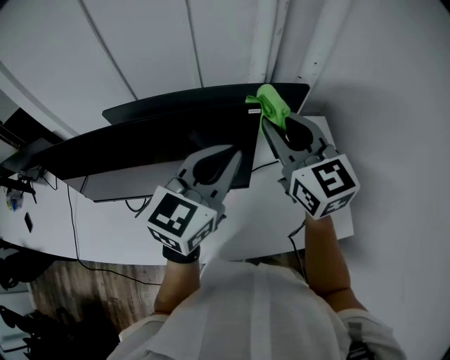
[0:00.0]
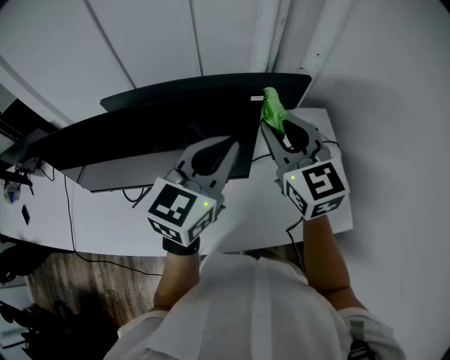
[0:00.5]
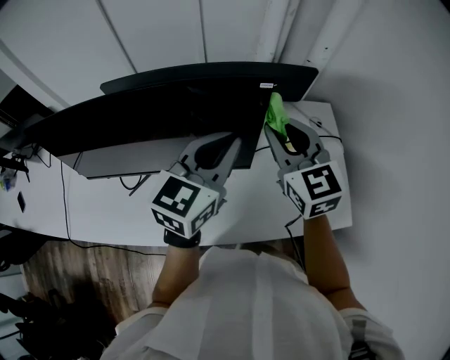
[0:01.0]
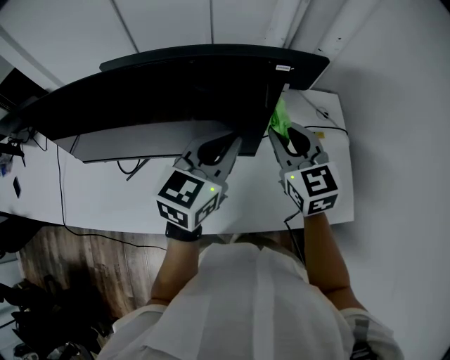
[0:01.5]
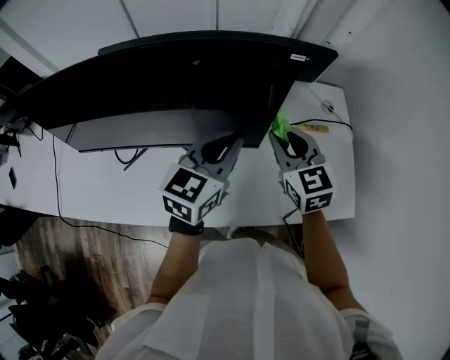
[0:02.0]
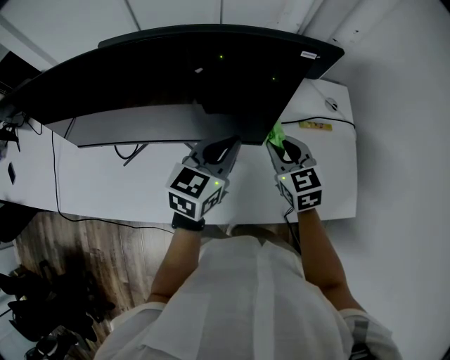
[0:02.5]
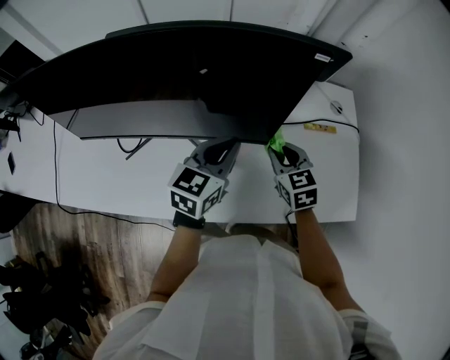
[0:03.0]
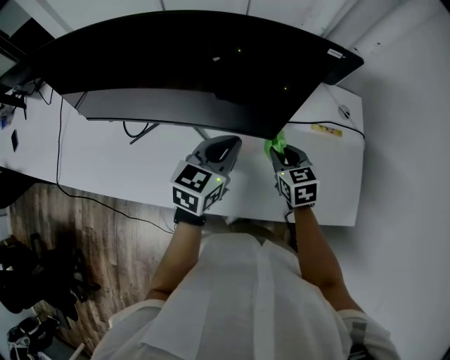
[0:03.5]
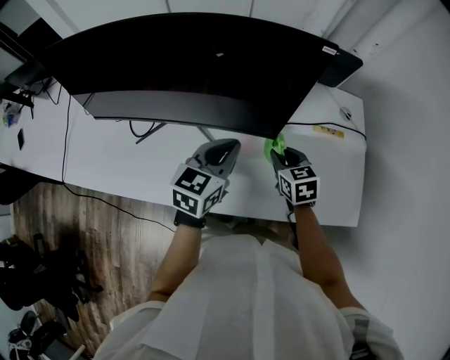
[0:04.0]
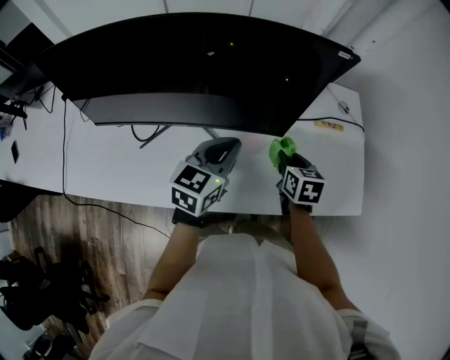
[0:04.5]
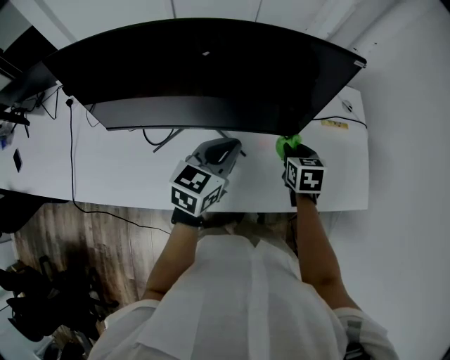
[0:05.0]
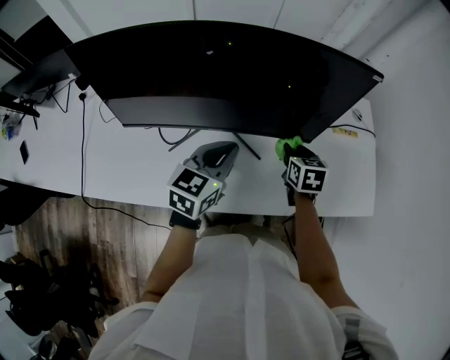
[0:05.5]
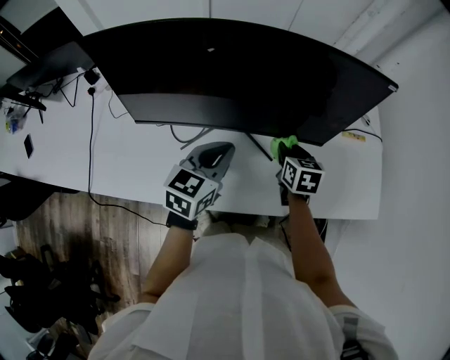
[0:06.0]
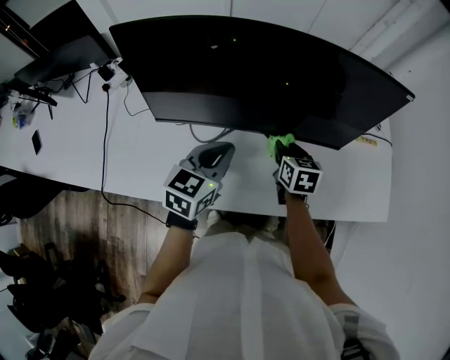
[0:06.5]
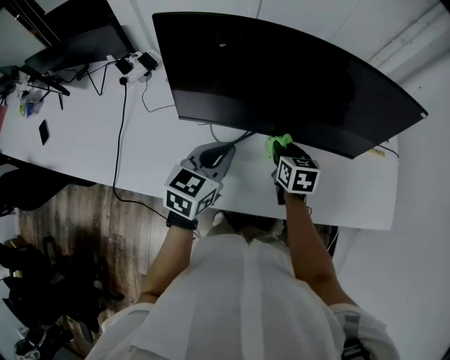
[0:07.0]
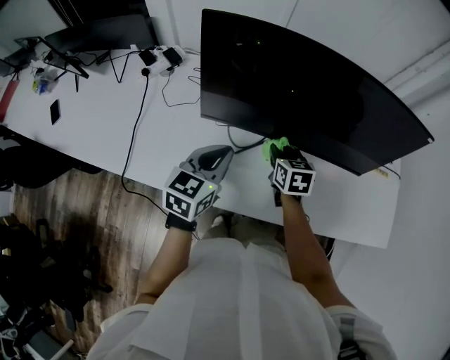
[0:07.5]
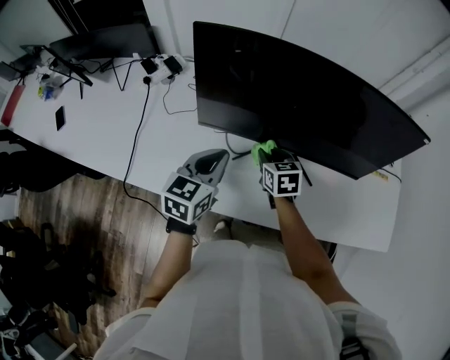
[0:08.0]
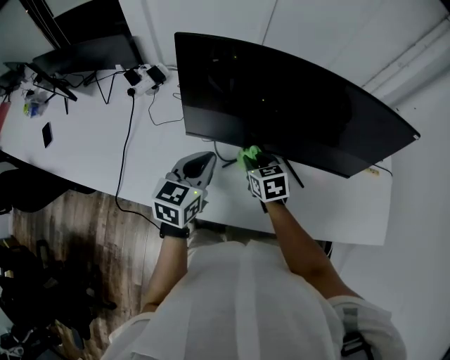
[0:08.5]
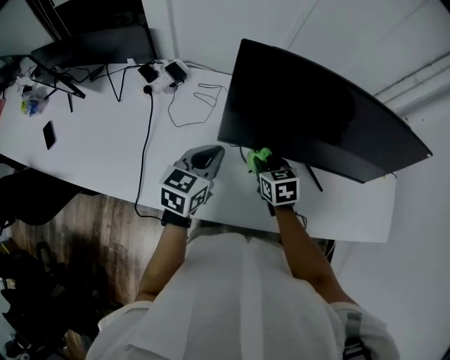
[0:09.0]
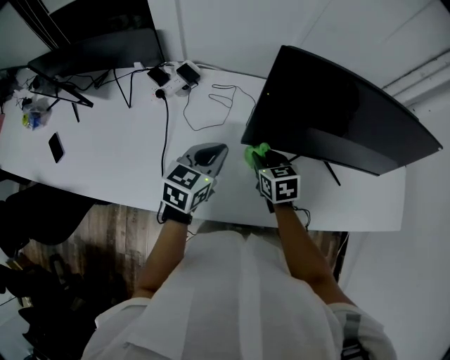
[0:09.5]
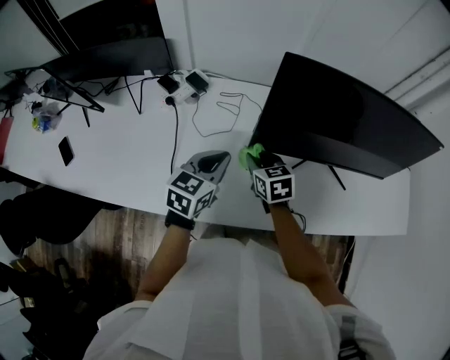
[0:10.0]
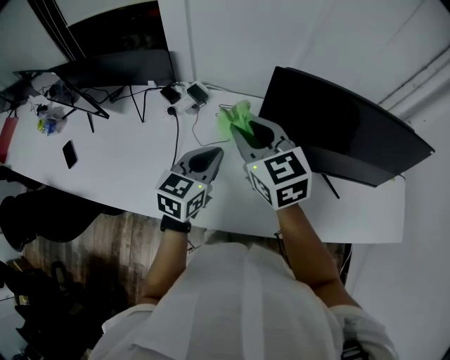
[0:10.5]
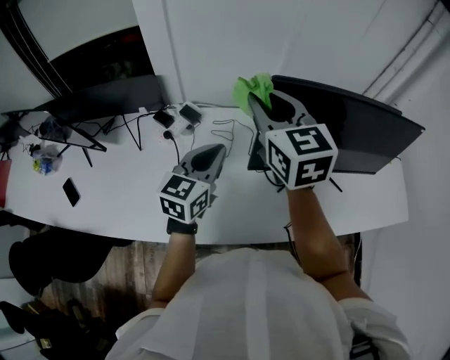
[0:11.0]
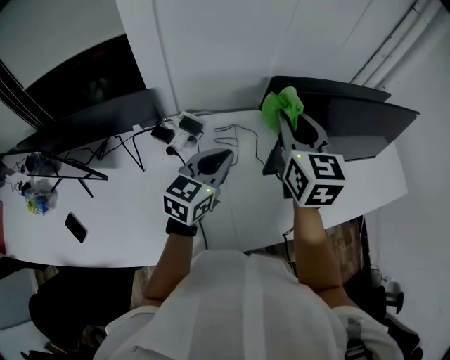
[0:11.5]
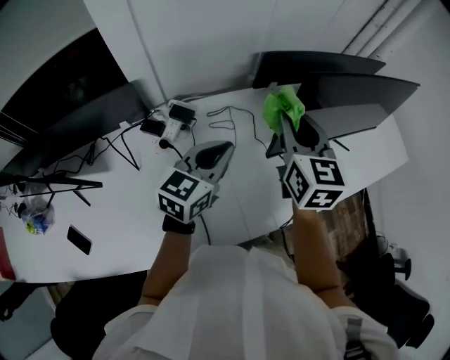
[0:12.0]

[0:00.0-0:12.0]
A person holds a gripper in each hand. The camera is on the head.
0:00.0 to 0:02.0: The grippers both shift downward by approximately 20 cm. The right gripper changes its angle by roughly 20 degrees.
0:02.0 to 0:04.0: The right gripper shifts approximately 15 cm downward, and changes its angle by approximately 20 degrees, while the left gripper is displaced downward by roughly 5 cm.
0:04.0 to 0:06.0: Both grippers travel together to the left, approximately 15 cm. The right gripper turns by some 20 degrees.
0:06.0 to 0:08.0: The grippers both shift to the left by roughly 20 cm. The right gripper turns by some 20 degrees.
0:08.0 to 0:10.0: The grippers both shift to the left by roughly 20 cm.
0:10.0 to 0:12.0: The right gripper heads upward, covering some 25 cm, and changes its angle by approximately 50 degrees. Meanwhile the left gripper ends up about 15 cm from where it was, and turns by roughly 30 degrees.

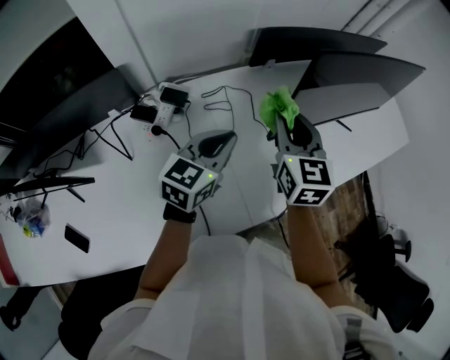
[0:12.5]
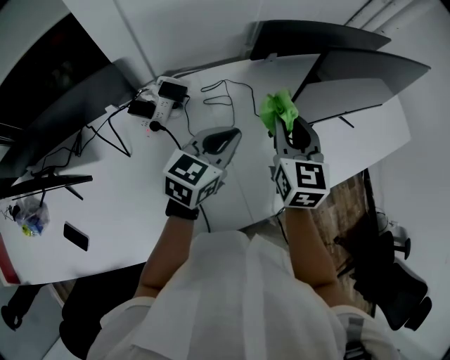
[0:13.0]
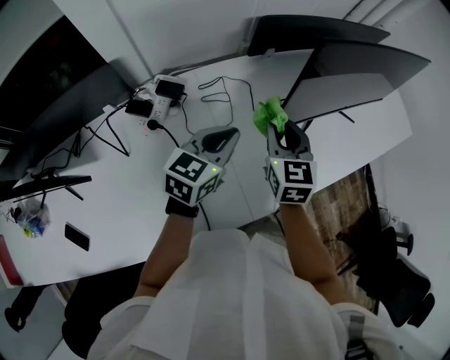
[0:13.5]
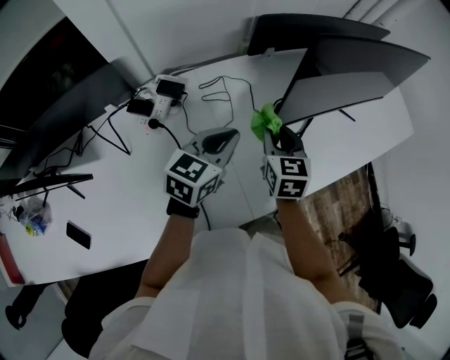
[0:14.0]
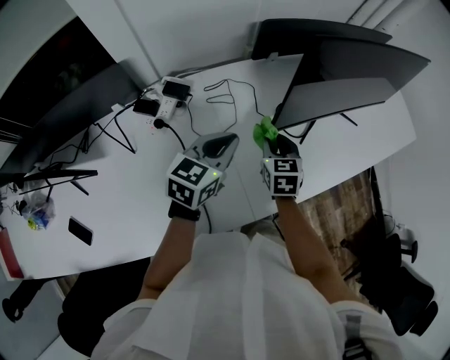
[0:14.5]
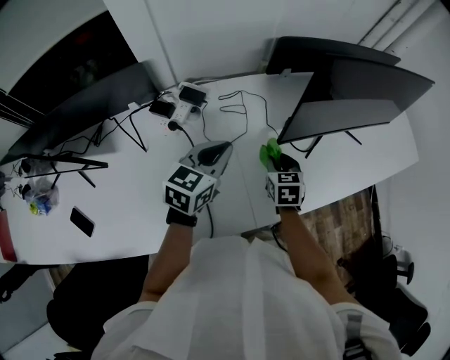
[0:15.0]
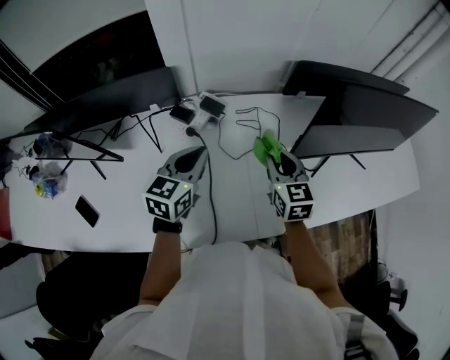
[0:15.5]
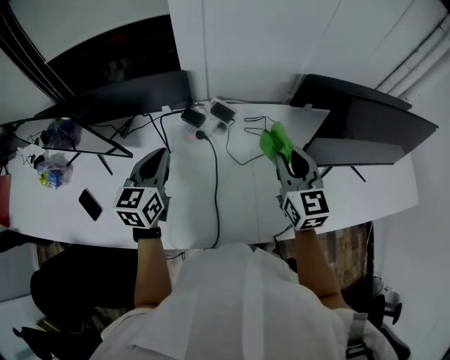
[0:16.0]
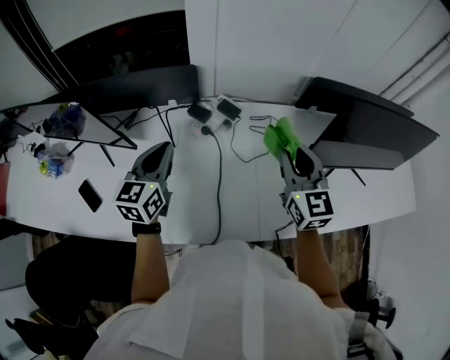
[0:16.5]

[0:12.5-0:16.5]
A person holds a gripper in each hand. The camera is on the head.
0:12.5 to 0:14.5: The right gripper is displaced downward by approximately 15 cm, and swivels some 20 degrees.
0:14.5 to 0:16.5: The left gripper ends up about 30 cm from where it was, and rotates some 40 degrees; the right gripper moves upward, some 20 cm, and changes its angle by some 40 degrees.

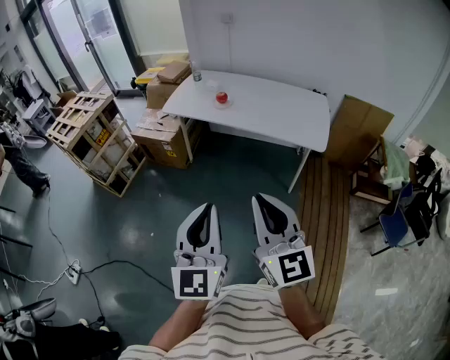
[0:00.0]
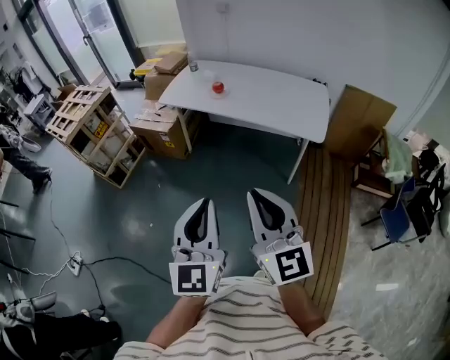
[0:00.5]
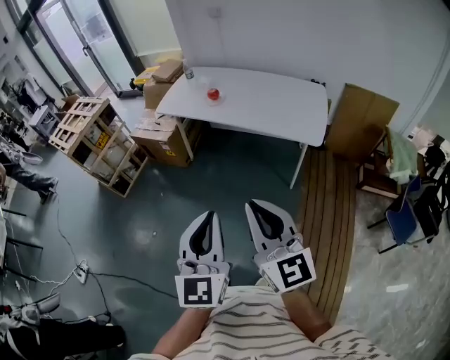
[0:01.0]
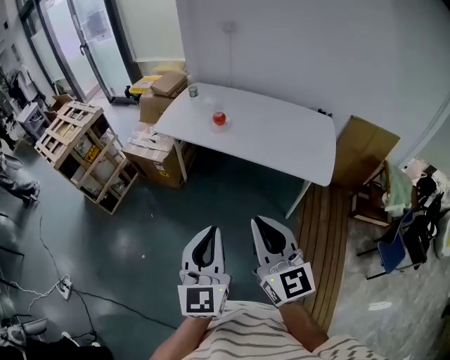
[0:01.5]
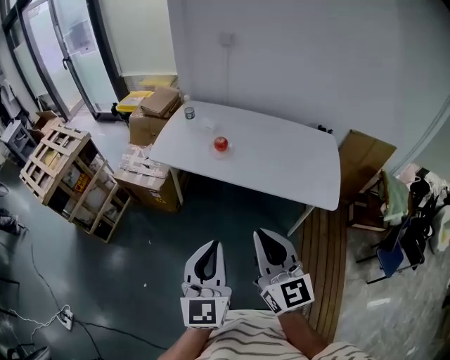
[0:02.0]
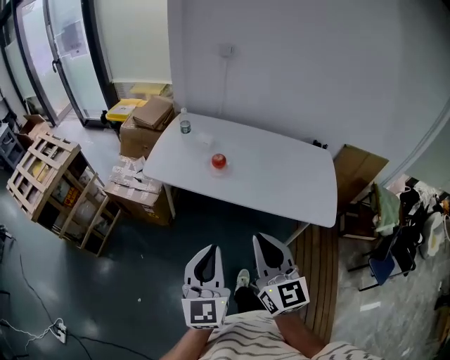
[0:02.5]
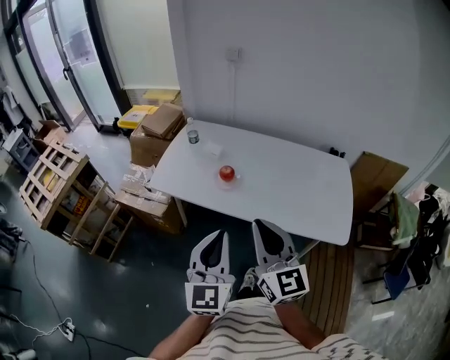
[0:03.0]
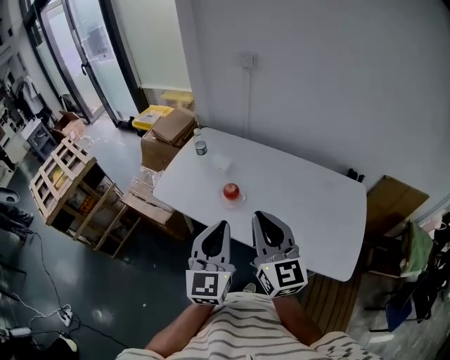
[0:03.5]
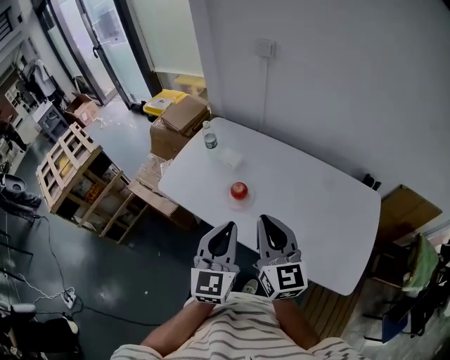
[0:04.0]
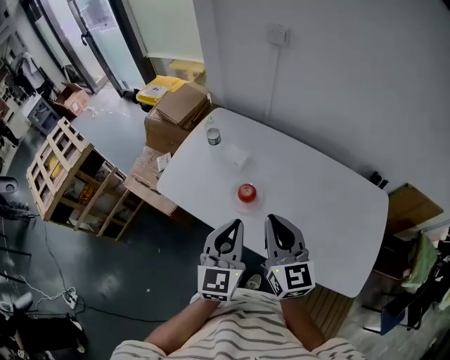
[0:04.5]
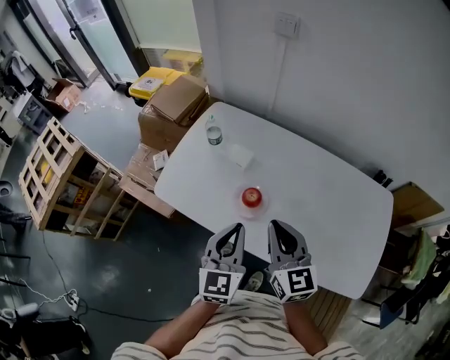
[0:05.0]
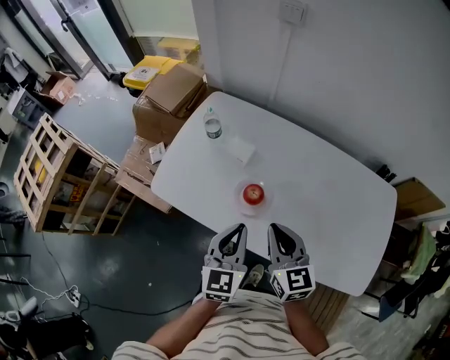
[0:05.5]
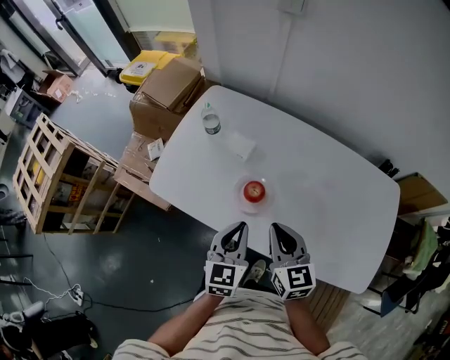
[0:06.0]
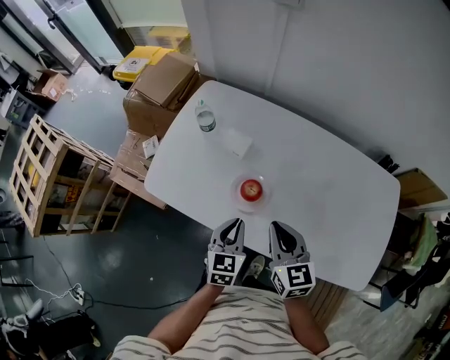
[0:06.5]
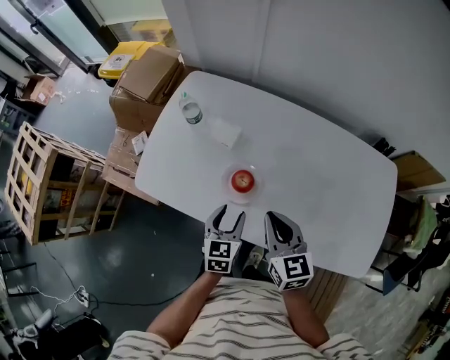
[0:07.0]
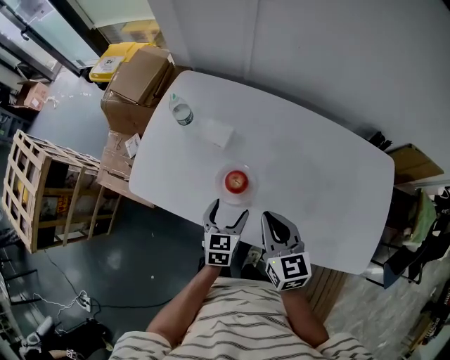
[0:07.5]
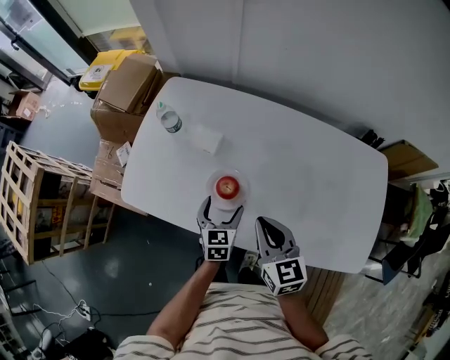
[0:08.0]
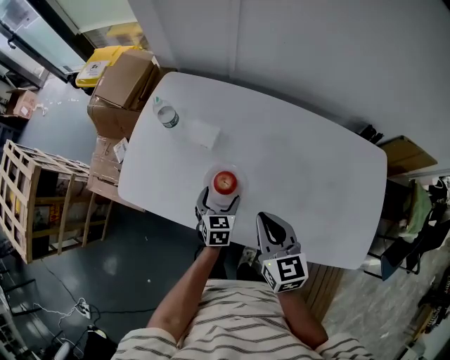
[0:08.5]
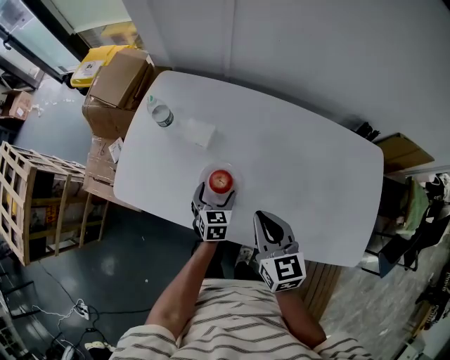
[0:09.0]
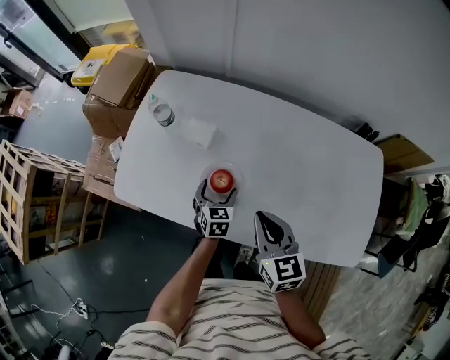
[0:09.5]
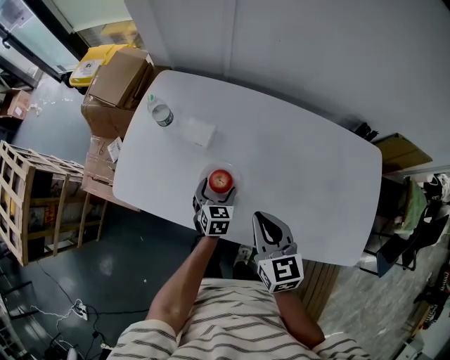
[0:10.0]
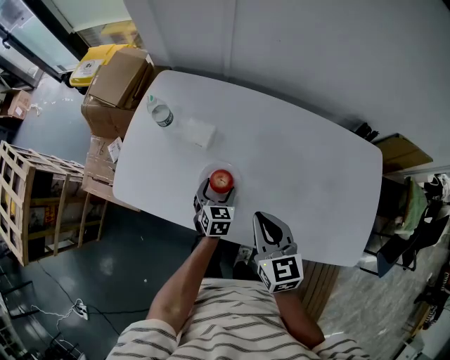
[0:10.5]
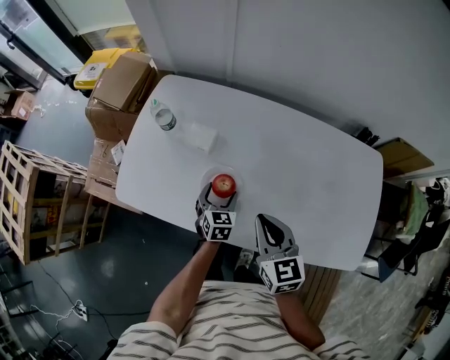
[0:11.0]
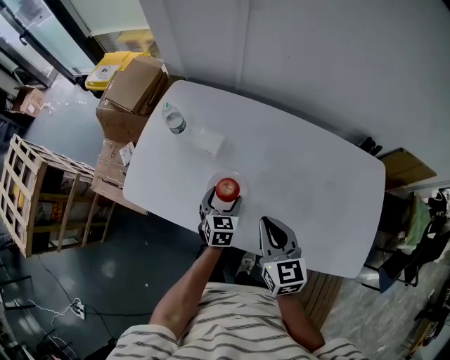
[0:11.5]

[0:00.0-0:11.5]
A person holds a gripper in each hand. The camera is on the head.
0:00.0 to 0:02.0: Both grippers move forward, some 30 cm.
0:02.0 to 0:04.0: Both grippers travel together forward, some 40 cm.
0:04.0 to 0:06.0: Both grippers travel together downward and forward, roughly 20 cm. The left gripper turns by some 20 degrees. Meanwhile the right gripper turns by about 20 degrees.
0:06.0 to 0:07.5: The left gripper moves downward, approximately 15 cm, and opens up.
0:07.5 to 0:09.5: The left gripper goes some 10 cm downward and forward.
0:09.5 to 0:11.5: There are only small adjustments of the grippers.
